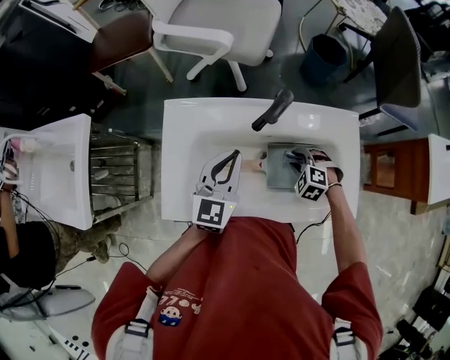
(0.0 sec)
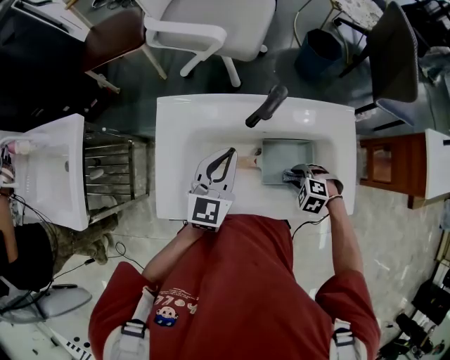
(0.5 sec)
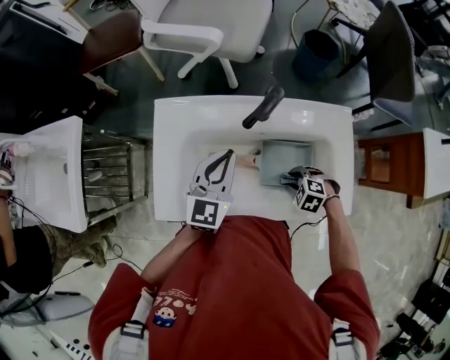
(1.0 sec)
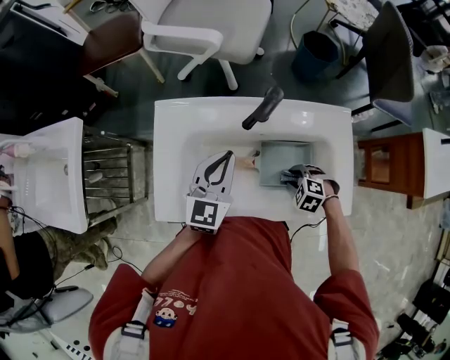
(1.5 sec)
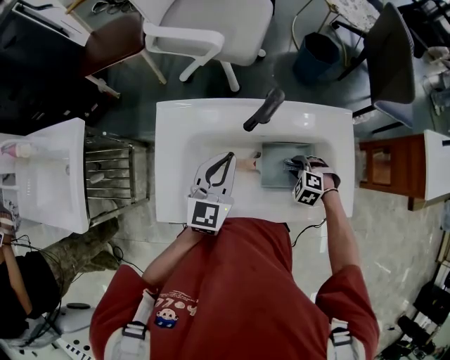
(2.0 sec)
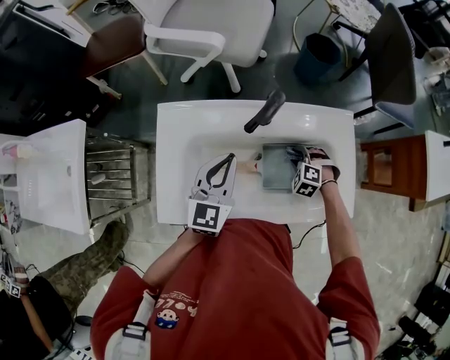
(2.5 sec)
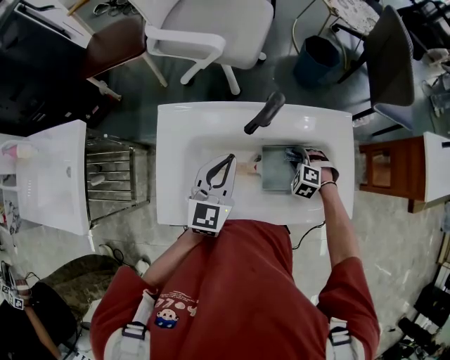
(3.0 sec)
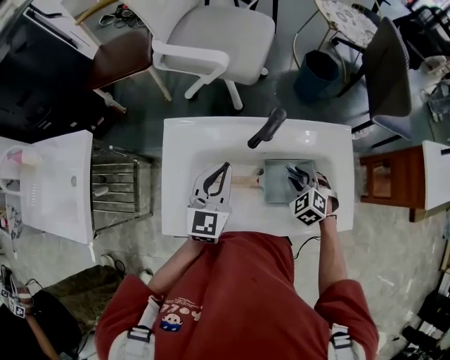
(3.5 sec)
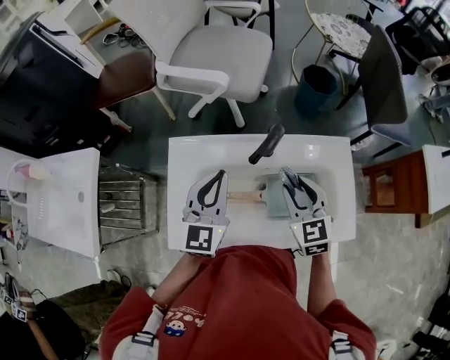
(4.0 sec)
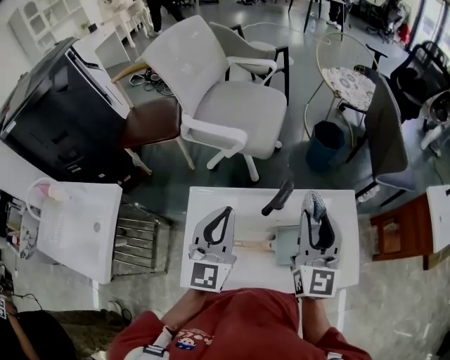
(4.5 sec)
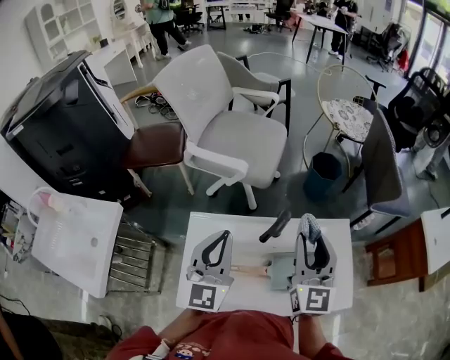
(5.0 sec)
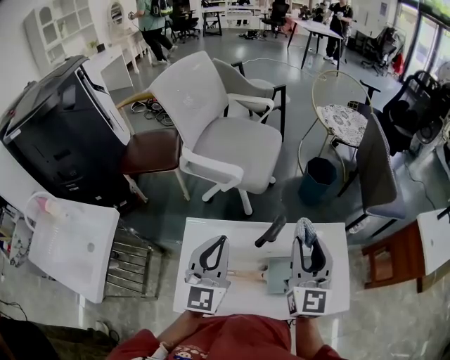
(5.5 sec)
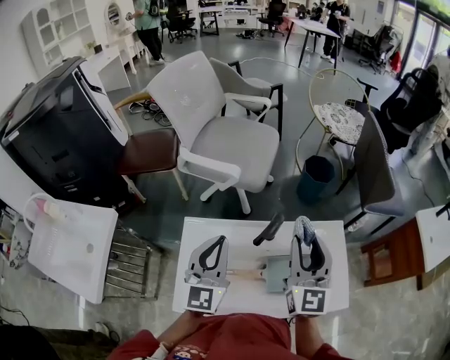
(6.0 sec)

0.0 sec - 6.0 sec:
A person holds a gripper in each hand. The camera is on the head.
2.0 sec - 4.0 sec: The left gripper shifts roughly 5 cm upward. The right gripper moves upward, some 25 cm, and tilts its fingers about 40 degrees upward.
4.0 sec - 6.0 sec: The left gripper shifts approximately 10 cm upward, while the right gripper heads upward, covering about 15 cm, and tips its fingers upward by roughly 30 degrees.

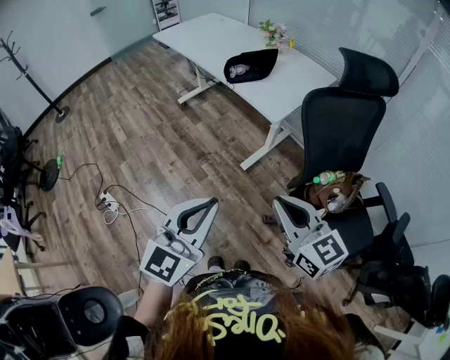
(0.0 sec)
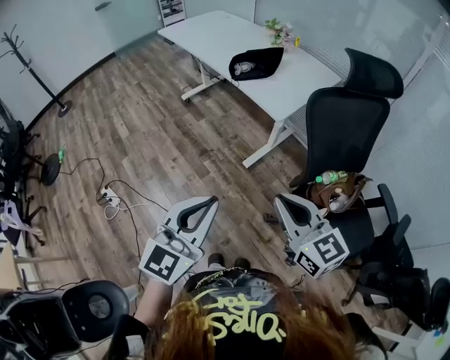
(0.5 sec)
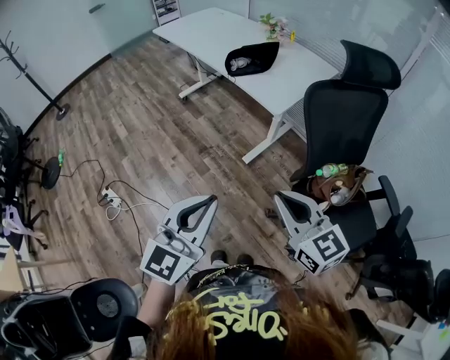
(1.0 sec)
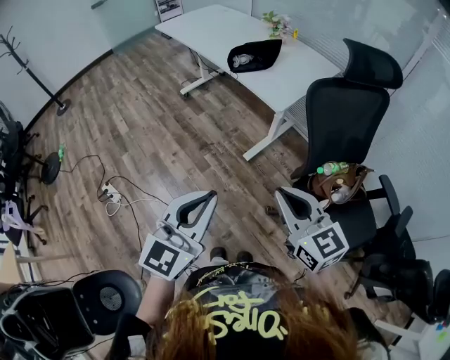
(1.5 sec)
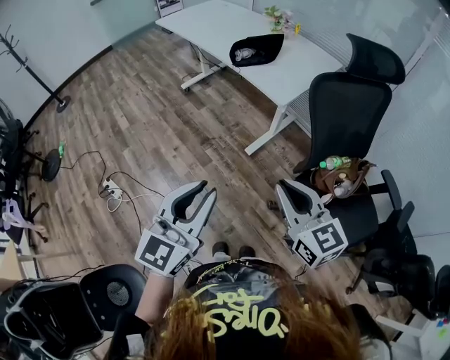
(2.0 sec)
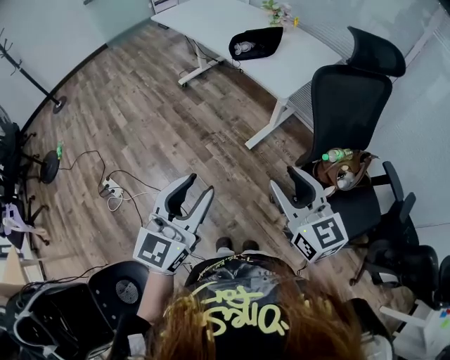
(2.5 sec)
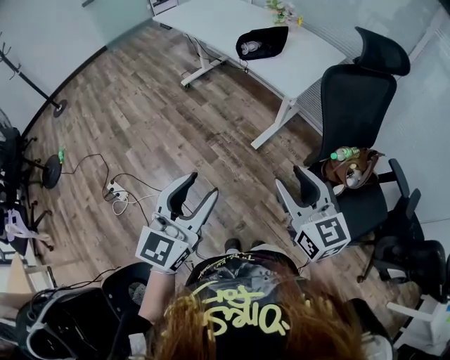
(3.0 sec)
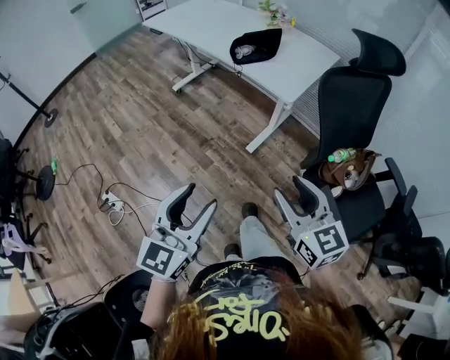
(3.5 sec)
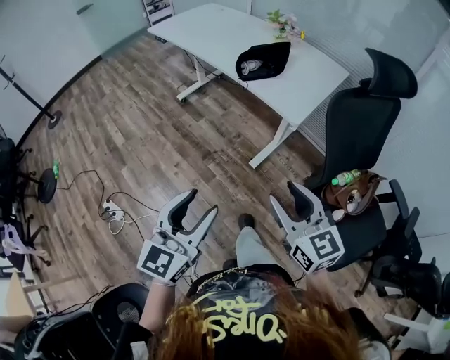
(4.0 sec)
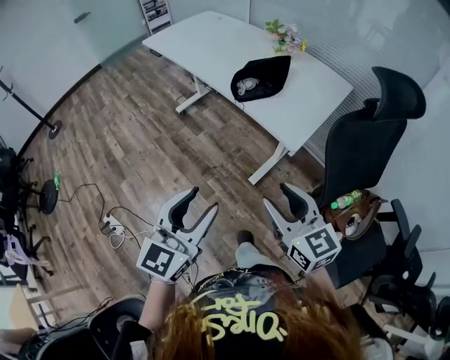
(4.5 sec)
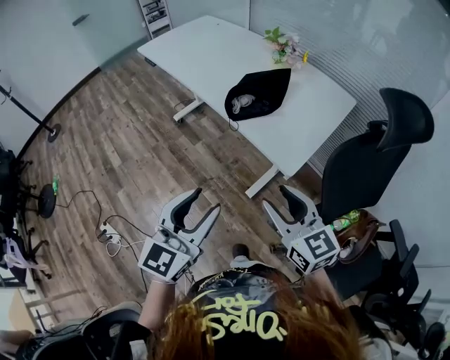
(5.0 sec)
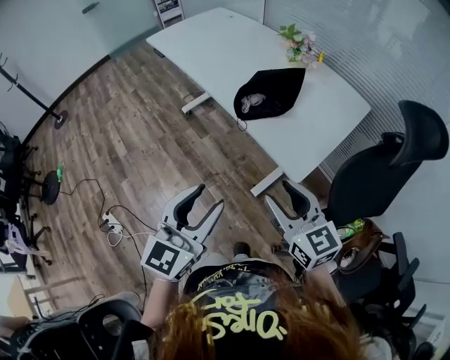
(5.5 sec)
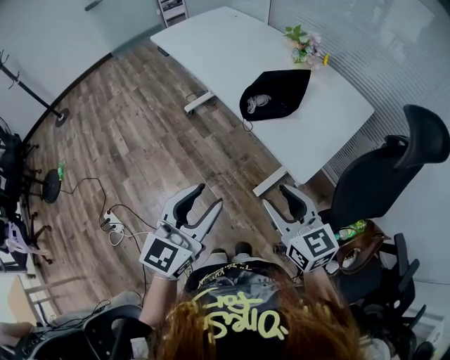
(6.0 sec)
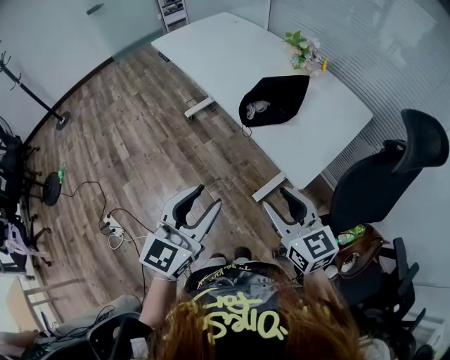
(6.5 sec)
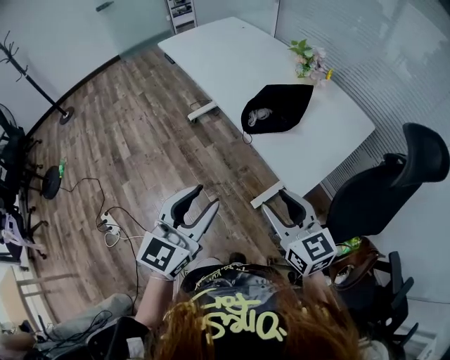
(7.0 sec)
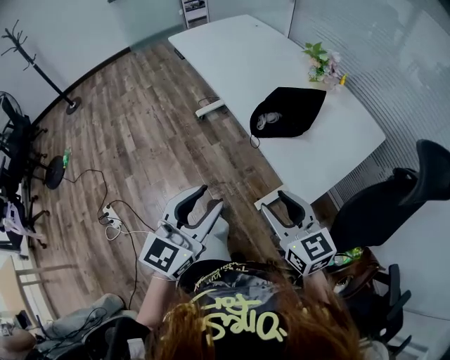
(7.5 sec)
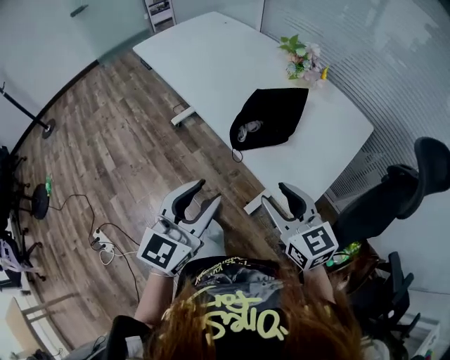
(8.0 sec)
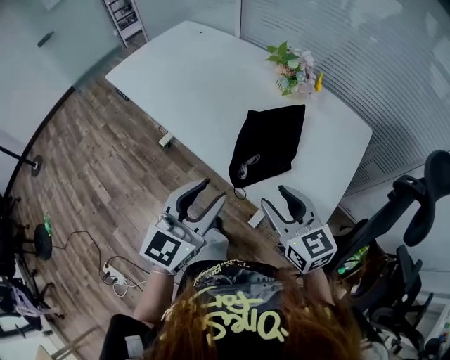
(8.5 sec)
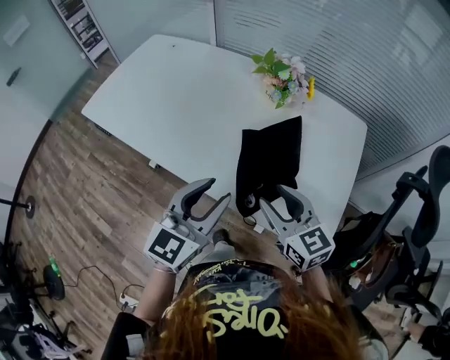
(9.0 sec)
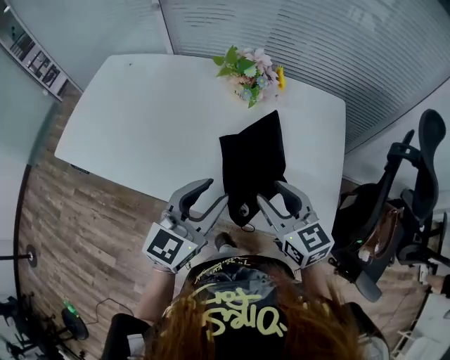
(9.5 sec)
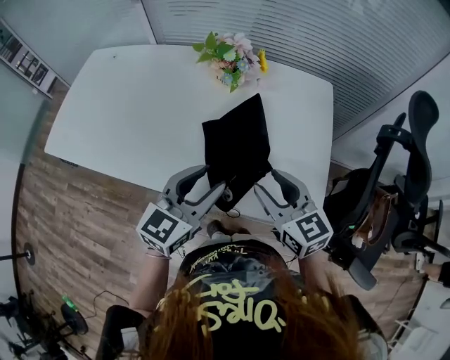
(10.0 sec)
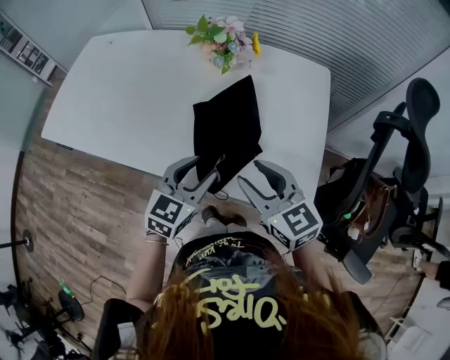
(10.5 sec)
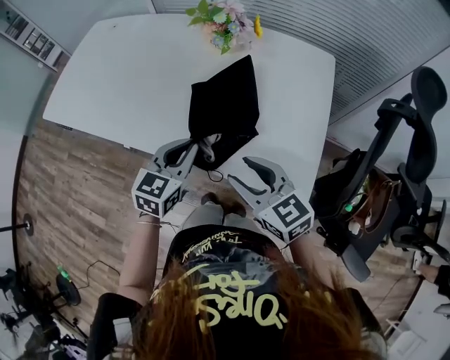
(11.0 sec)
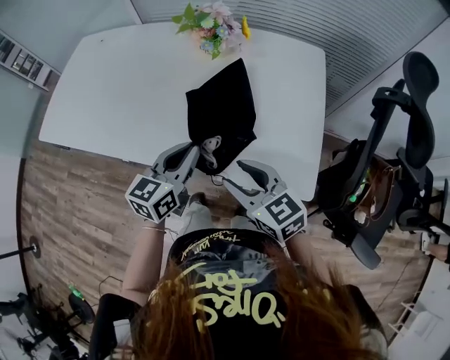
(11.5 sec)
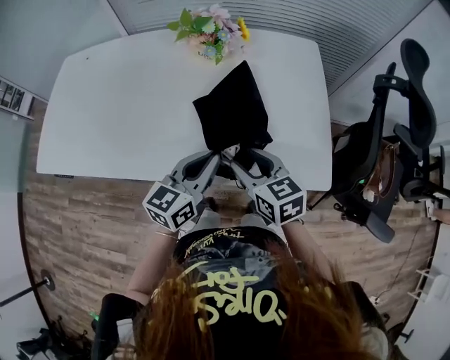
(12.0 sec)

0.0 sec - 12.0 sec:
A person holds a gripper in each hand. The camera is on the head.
0.0 sec - 2.0 sec: The grippers make only small movements.
2.0 sec - 4.0 sec: Both grippers travel together forward and to the left, some 10 cm. The right gripper opens. The left gripper opens its fingers.
4.0 sec - 6.0 sec: The grippers both shift forward by roughly 25 cm.
6.0 sec - 8.0 sec: Both grippers travel together forward, some 15 cm.
8.0 sec - 10.0 sec: The left gripper shifts by approximately 25 cm, and turns by approximately 40 degrees. The right gripper shifts by some 20 cm, and changes its angle by approximately 30 degrees.
10.0 sec - 12.0 sec: The right gripper shifts approximately 10 cm to the left and downward. The left gripper shifts approximately 5 cm downward, and closes its fingers.

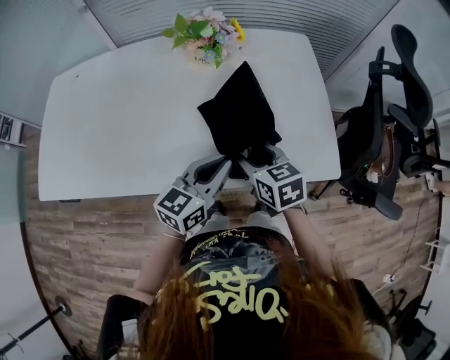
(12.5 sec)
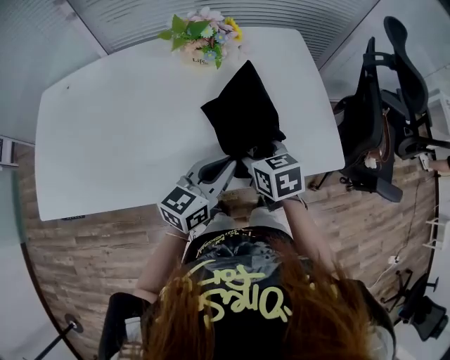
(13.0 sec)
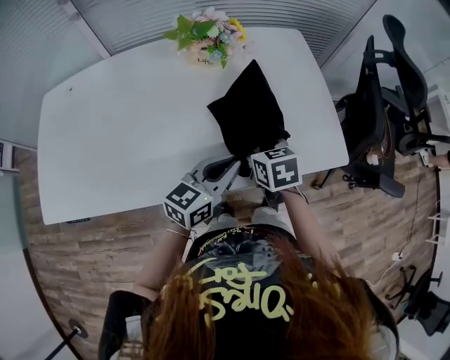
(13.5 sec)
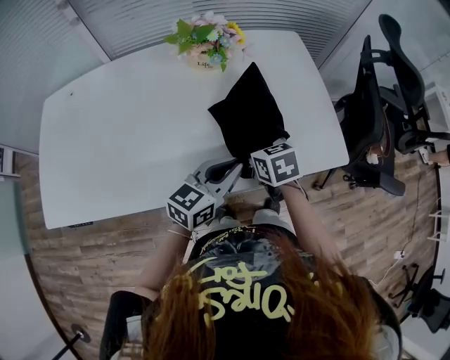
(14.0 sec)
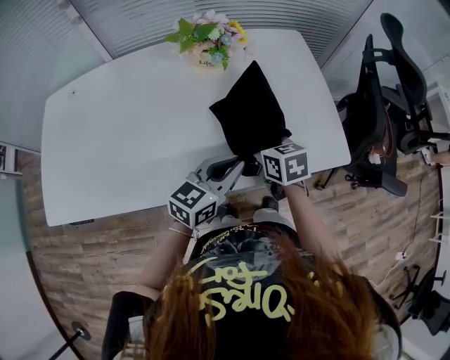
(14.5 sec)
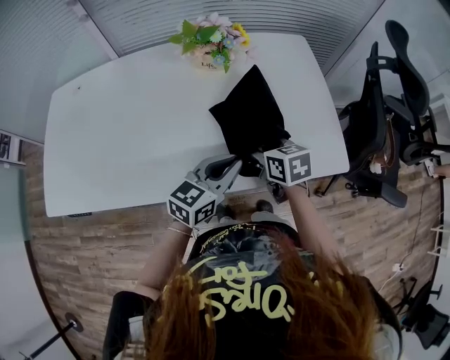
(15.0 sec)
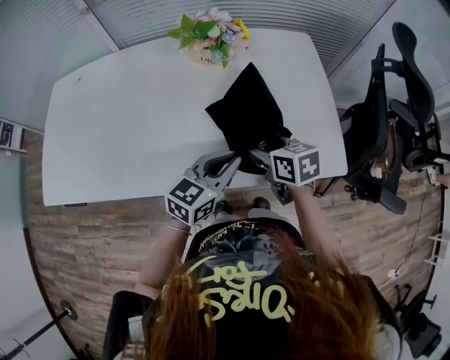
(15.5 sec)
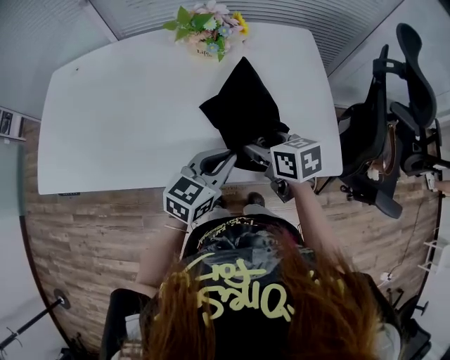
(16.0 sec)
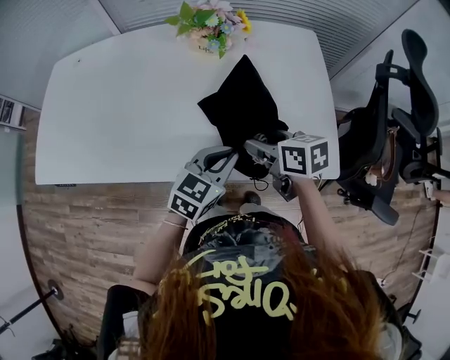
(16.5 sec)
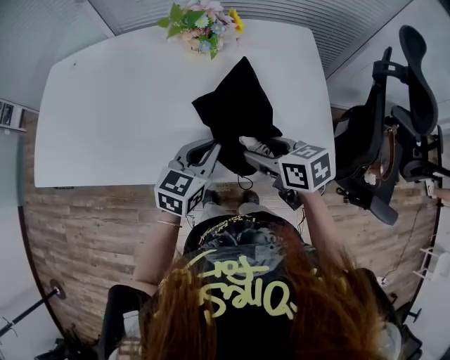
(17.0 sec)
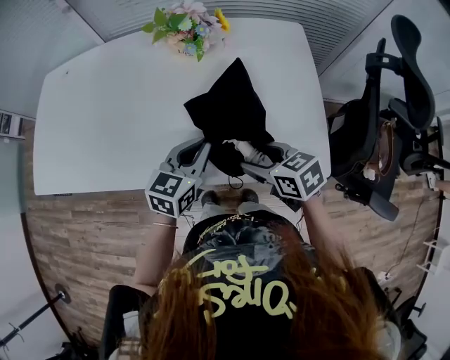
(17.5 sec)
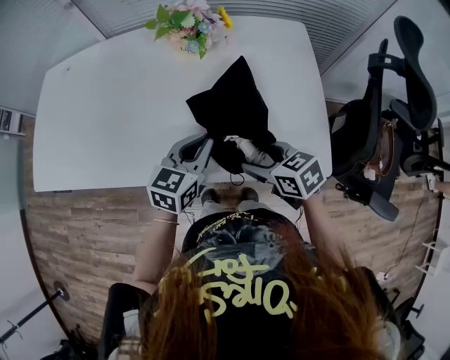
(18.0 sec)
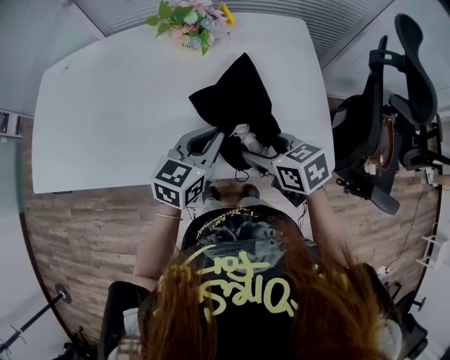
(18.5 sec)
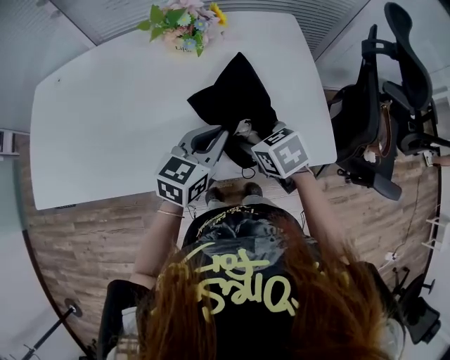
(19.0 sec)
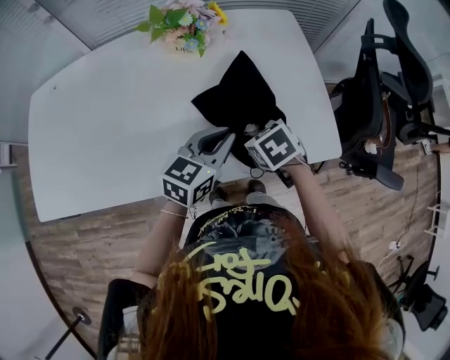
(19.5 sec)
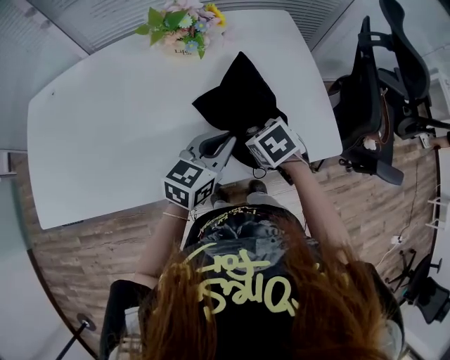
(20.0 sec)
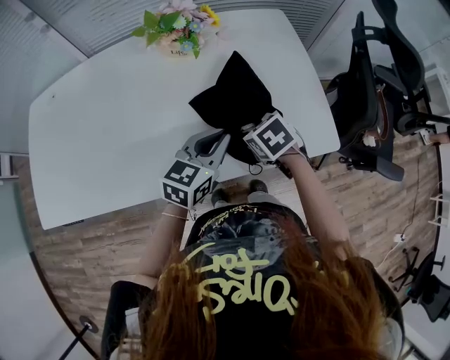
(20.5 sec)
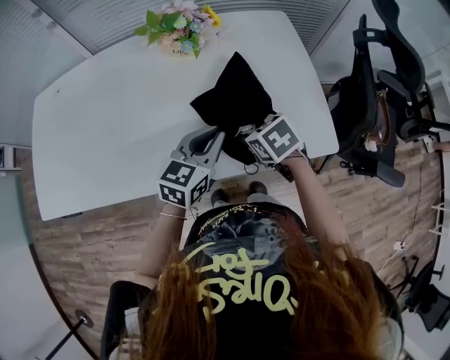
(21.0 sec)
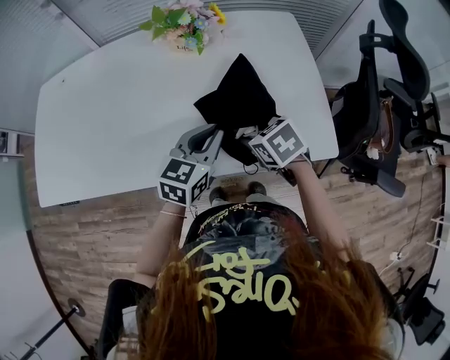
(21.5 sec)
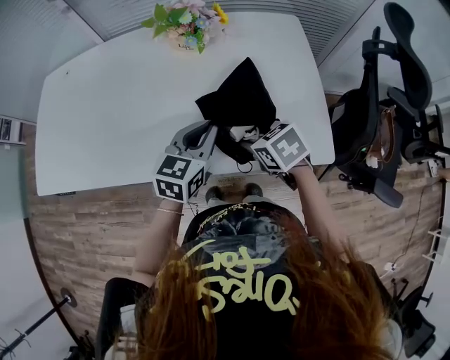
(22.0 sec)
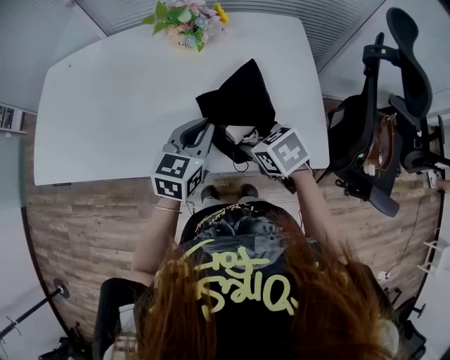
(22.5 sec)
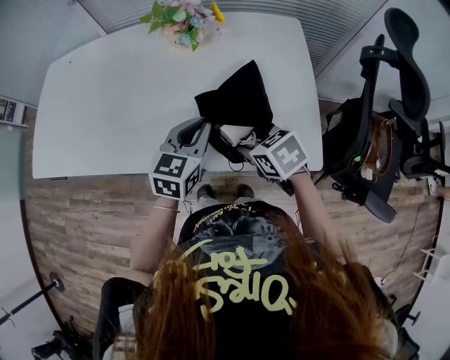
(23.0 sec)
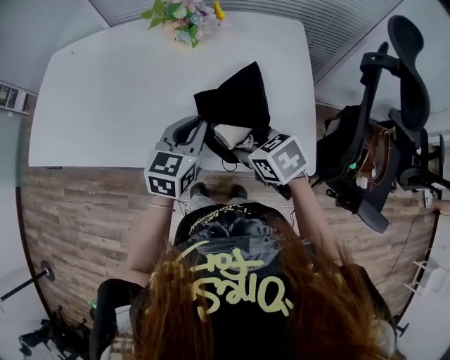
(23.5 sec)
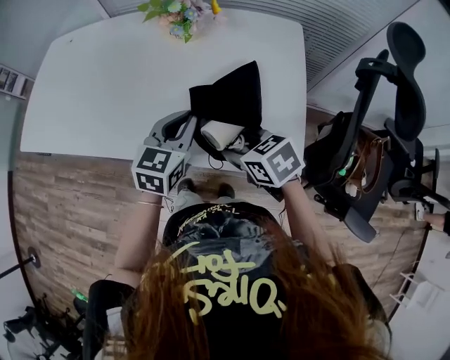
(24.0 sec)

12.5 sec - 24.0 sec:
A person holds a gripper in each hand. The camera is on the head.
12.5 sec - 14.5 sec: The right gripper opens.
14.5 sec - 16.5 sec: The left gripper goes approximately 5 cm to the right, and swivels about 20 degrees, while the right gripper shifts by approximately 5 cm, and changes its angle by roughly 20 degrees.
16.5 sec - 18.5 sec: The left gripper ends up roughly 5 cm from where it was.
18.5 sec - 20.0 sec: The right gripper moves downward, some 5 cm, and swivels some 30 degrees.
20.0 sec - 22.0 sec: The right gripper changes place by about 5 cm. Meanwhile the left gripper rotates roughly 20 degrees.
22.0 sec - 24.0 sec: The right gripper moves about 5 cm.
